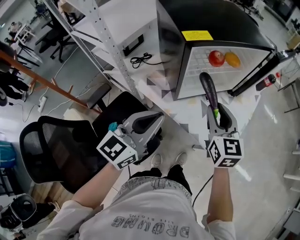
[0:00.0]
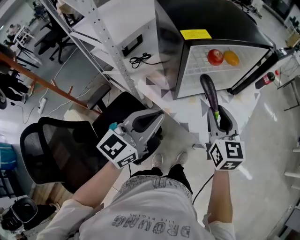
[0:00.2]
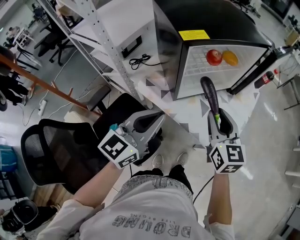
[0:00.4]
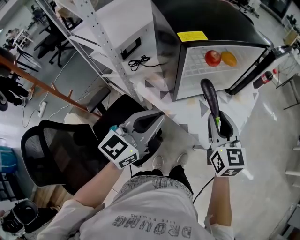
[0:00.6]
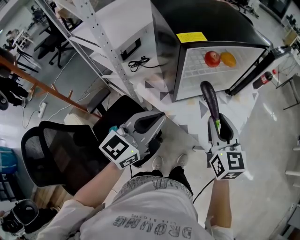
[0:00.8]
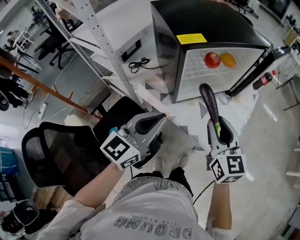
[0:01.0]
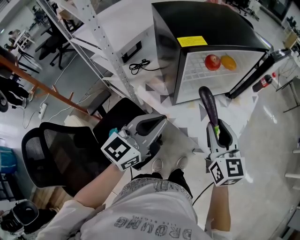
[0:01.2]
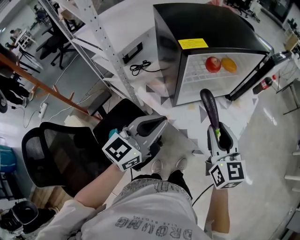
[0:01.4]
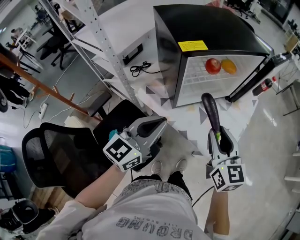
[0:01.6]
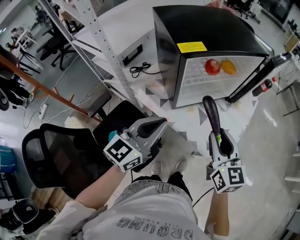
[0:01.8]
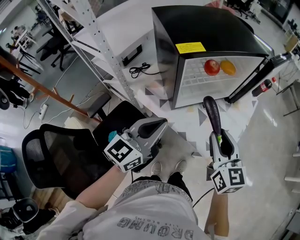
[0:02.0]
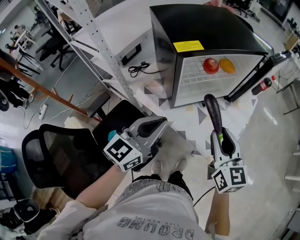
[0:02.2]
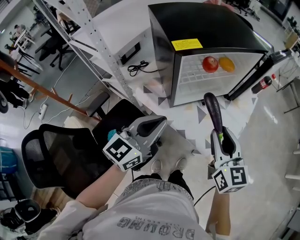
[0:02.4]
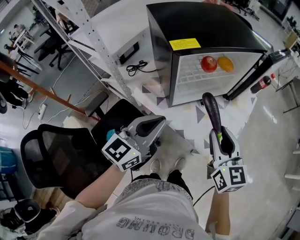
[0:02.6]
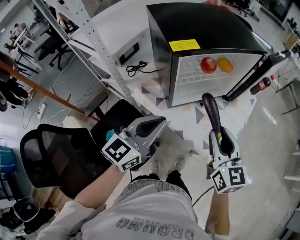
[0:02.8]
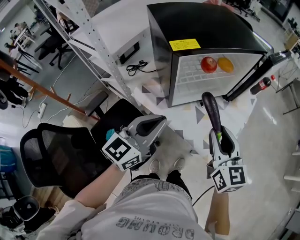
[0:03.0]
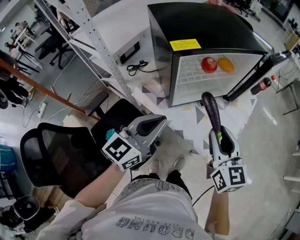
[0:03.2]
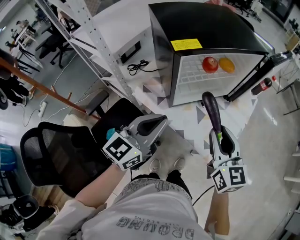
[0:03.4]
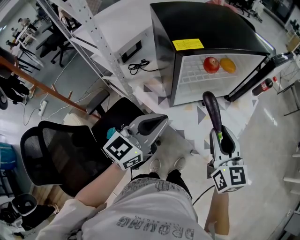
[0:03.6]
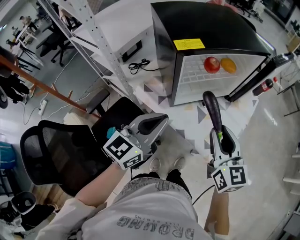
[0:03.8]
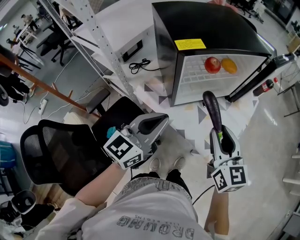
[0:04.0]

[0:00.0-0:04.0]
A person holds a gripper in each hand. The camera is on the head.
0:00.0 to 0:01.4: The right gripper goes roughly 5 cm backward.
0:01.4 to 0:02.6: The grippers stay close to where they were, moving slightly.
0:02.6 to 0:04.0: Neither gripper changes place.

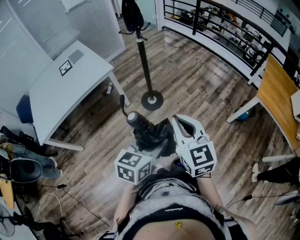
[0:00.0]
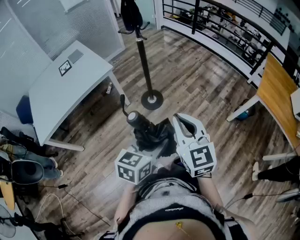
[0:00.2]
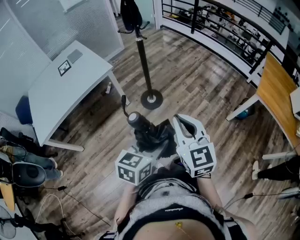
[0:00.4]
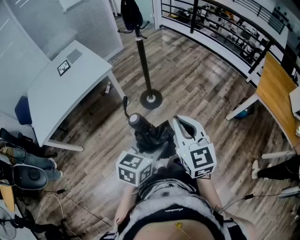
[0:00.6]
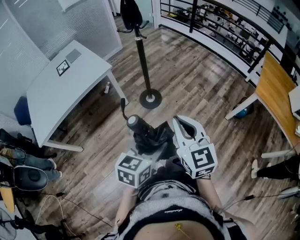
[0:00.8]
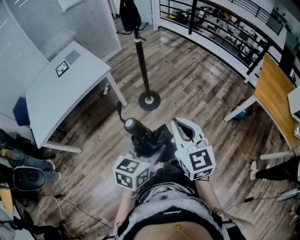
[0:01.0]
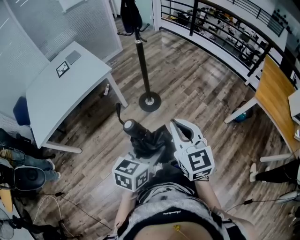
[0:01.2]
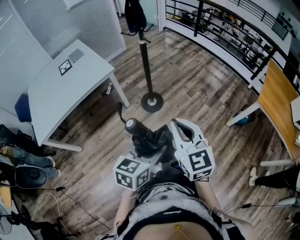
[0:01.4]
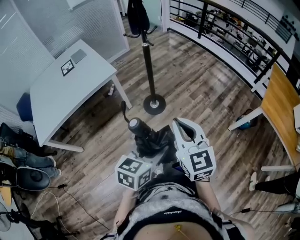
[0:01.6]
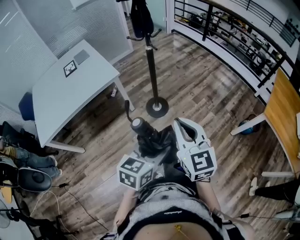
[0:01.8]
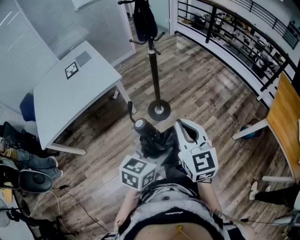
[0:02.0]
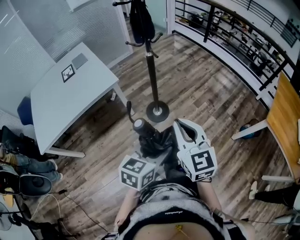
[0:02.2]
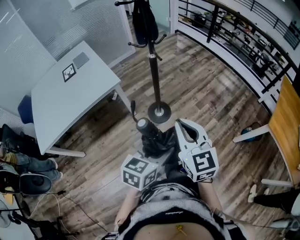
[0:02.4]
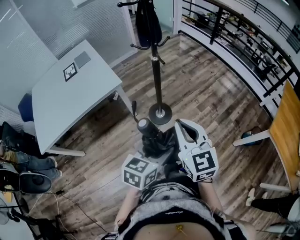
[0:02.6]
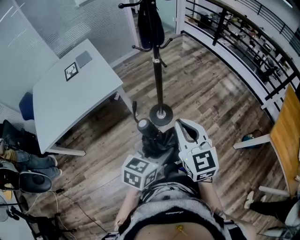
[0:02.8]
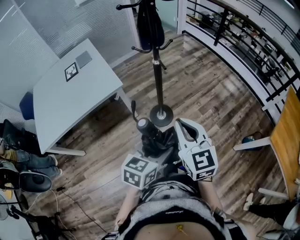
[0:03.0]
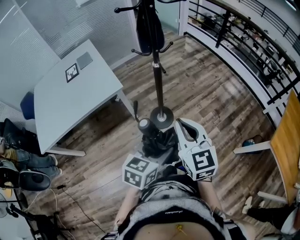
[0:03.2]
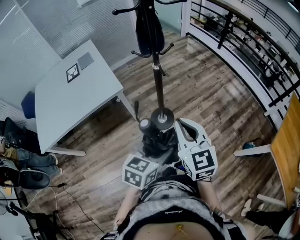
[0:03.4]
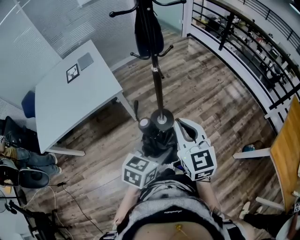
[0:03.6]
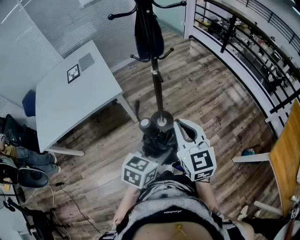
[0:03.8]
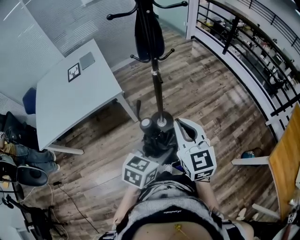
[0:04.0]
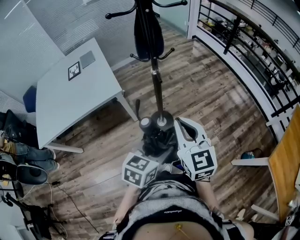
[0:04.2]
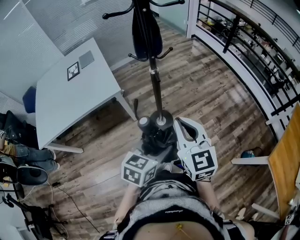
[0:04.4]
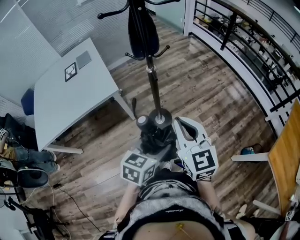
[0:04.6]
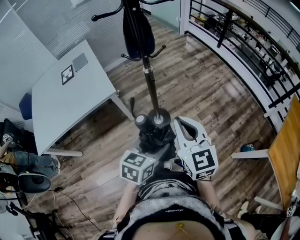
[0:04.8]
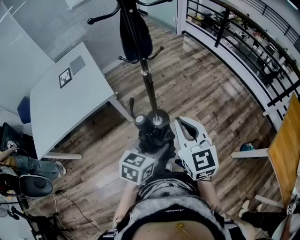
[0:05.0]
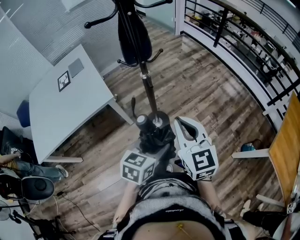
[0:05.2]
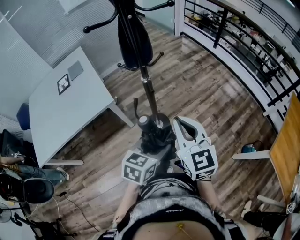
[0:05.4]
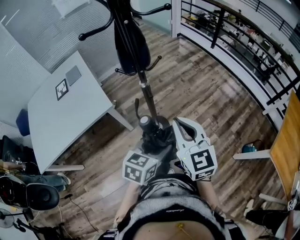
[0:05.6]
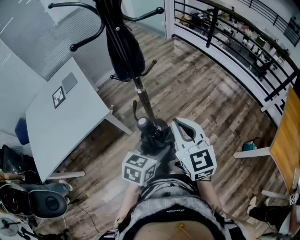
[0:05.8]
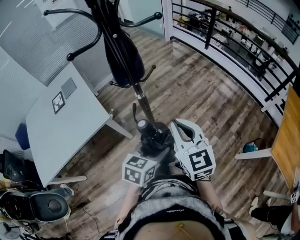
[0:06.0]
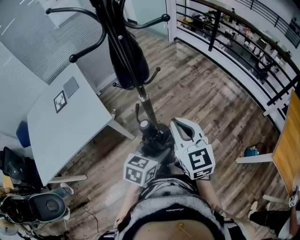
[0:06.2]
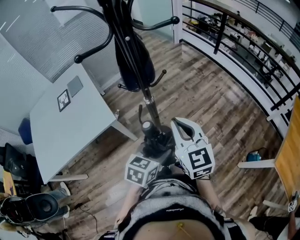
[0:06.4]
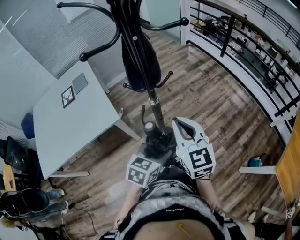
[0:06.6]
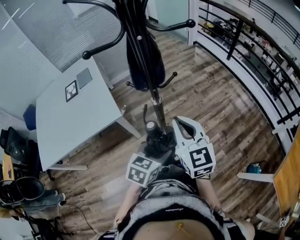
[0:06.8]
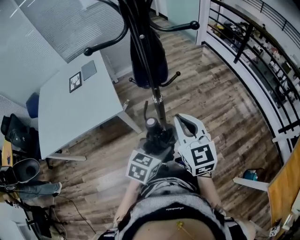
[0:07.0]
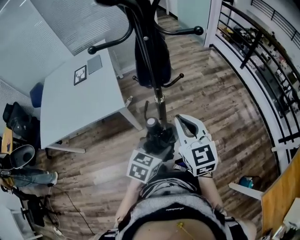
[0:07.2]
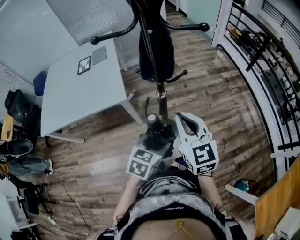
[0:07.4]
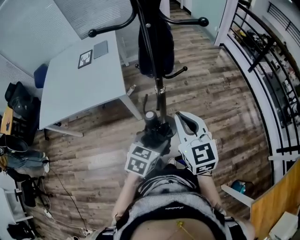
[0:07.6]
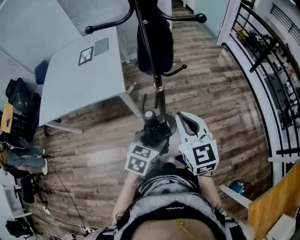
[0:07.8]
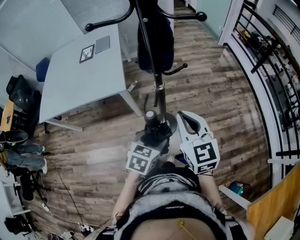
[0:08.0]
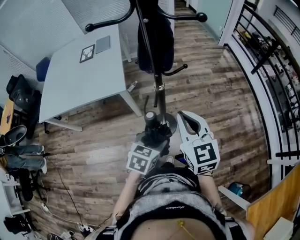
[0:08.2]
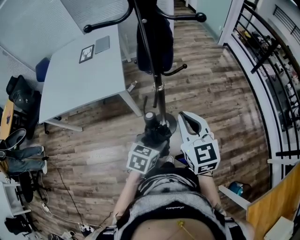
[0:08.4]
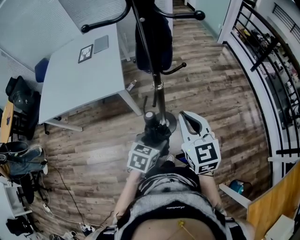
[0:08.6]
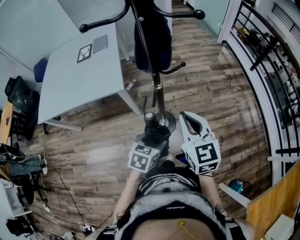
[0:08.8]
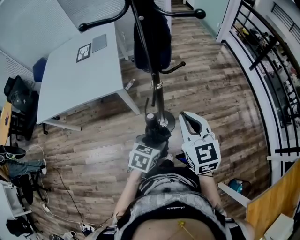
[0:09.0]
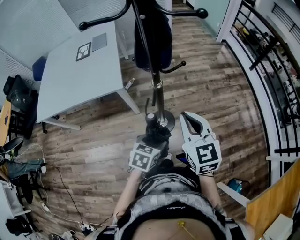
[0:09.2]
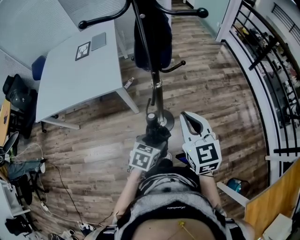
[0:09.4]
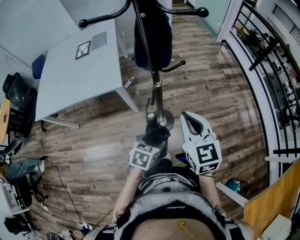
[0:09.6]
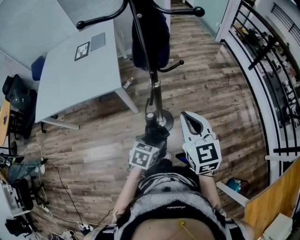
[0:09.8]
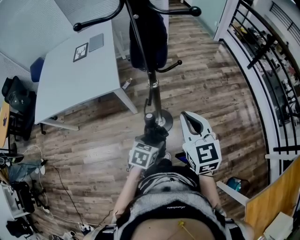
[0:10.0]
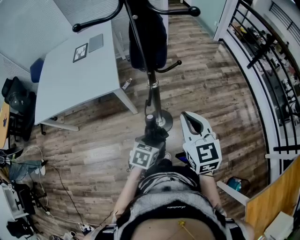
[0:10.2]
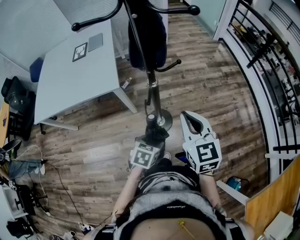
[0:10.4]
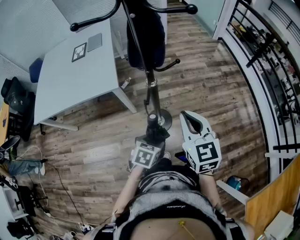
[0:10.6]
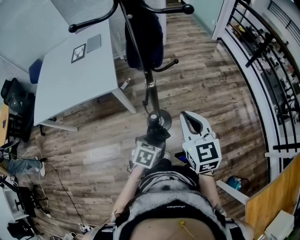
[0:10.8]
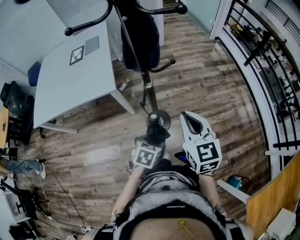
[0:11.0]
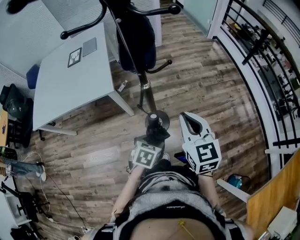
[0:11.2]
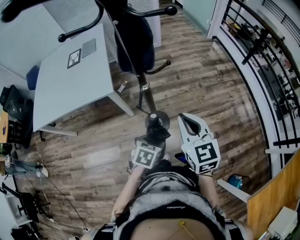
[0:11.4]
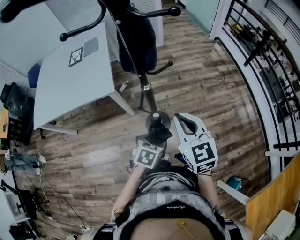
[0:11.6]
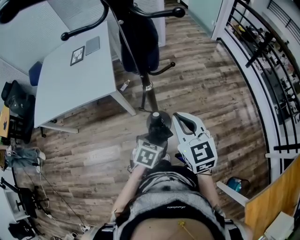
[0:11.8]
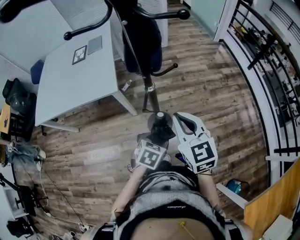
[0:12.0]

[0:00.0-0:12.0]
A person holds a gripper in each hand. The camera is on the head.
0:00.0 to 0:01.6: The right gripper moves about 5 cm.
0:01.6 to 0:03.0: The grippers both shift forward by some 20 cm.
0:03.0 to 0:04.4: The grippers both shift forward by approximately 10 cm.
0:04.4 to 0:06.0: Both grippers travel together forward, about 10 cm.
0:06.0 to 0:07.6: The left gripper changes place by approximately 5 cm, and swivels roughly 30 degrees. The right gripper moves some 5 cm, and swivels approximately 20 degrees.
0:07.6 to 0:09.0: The left gripper travels downward by about 5 cm.
0:09.0 to 0:10.4: The grippers stay close to where they were, moving slightly.
0:10.4 to 0:12.0: The left gripper shifts by roughly 5 cm.

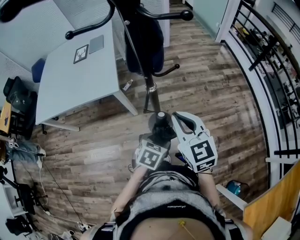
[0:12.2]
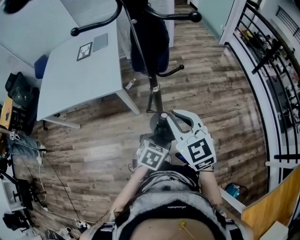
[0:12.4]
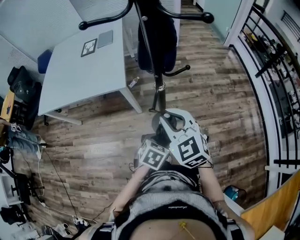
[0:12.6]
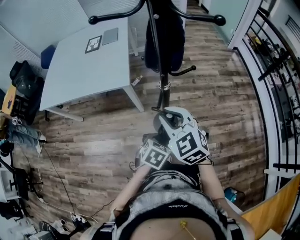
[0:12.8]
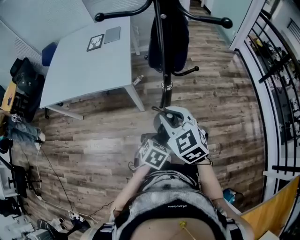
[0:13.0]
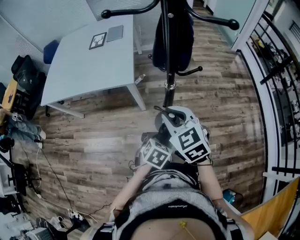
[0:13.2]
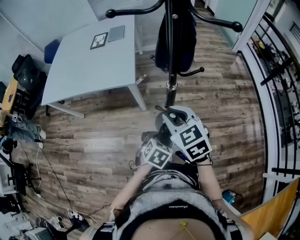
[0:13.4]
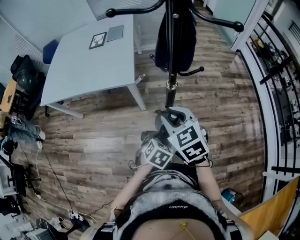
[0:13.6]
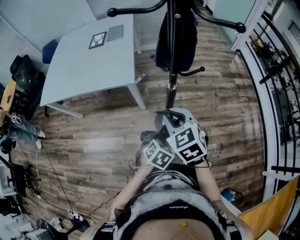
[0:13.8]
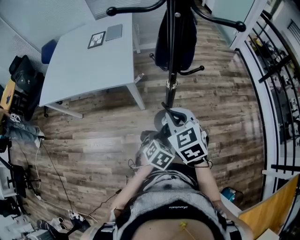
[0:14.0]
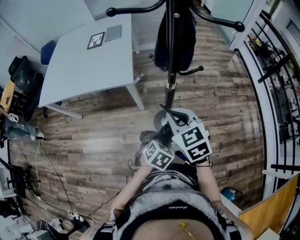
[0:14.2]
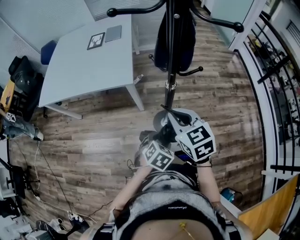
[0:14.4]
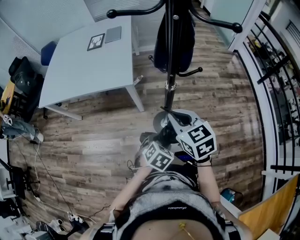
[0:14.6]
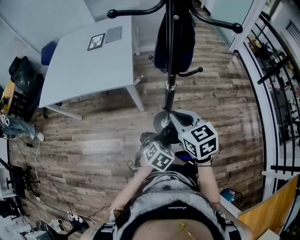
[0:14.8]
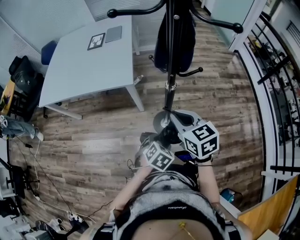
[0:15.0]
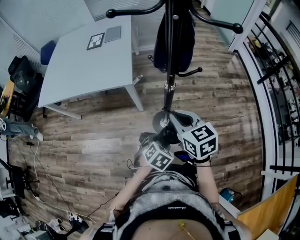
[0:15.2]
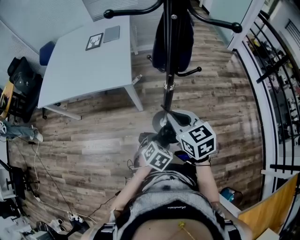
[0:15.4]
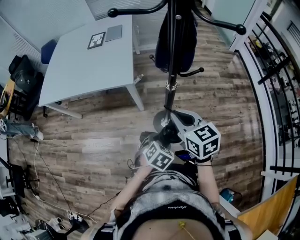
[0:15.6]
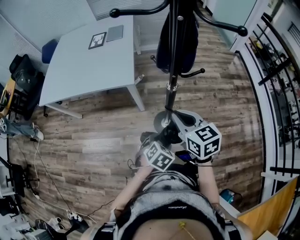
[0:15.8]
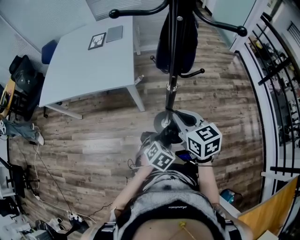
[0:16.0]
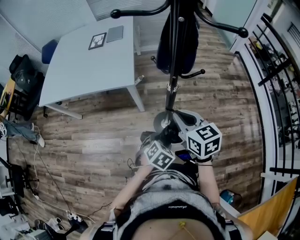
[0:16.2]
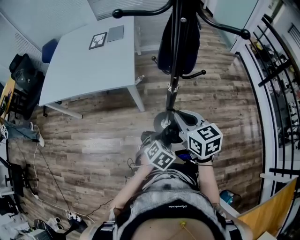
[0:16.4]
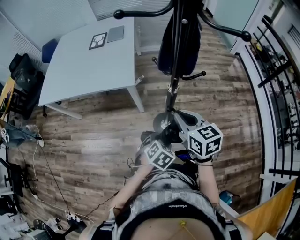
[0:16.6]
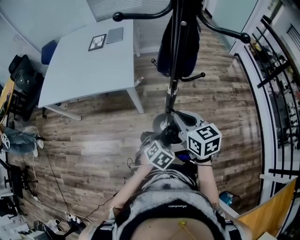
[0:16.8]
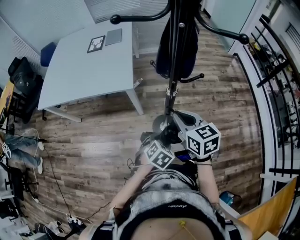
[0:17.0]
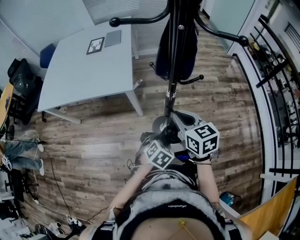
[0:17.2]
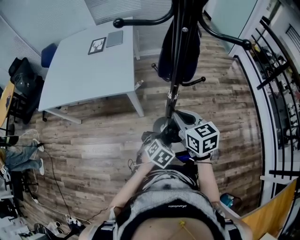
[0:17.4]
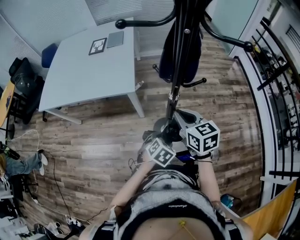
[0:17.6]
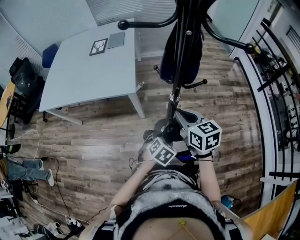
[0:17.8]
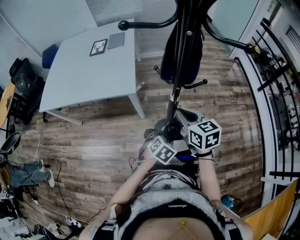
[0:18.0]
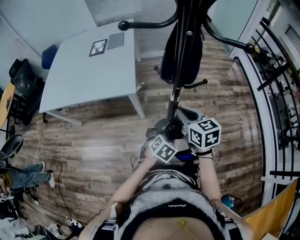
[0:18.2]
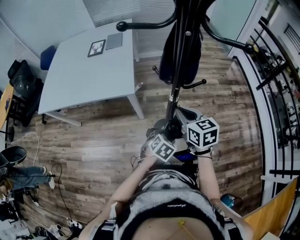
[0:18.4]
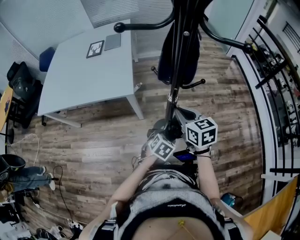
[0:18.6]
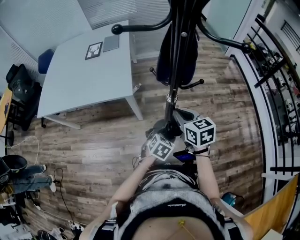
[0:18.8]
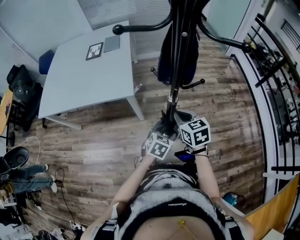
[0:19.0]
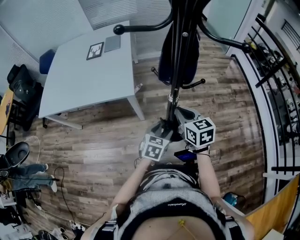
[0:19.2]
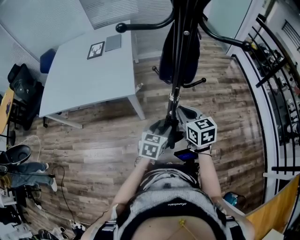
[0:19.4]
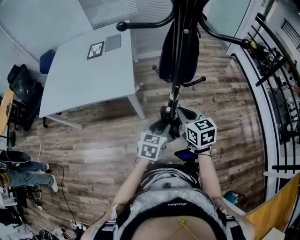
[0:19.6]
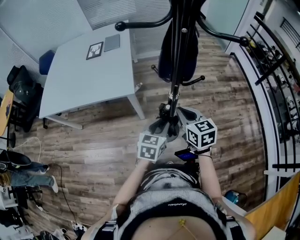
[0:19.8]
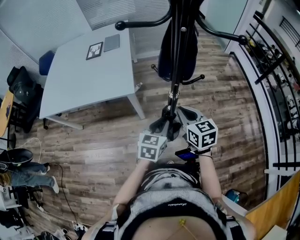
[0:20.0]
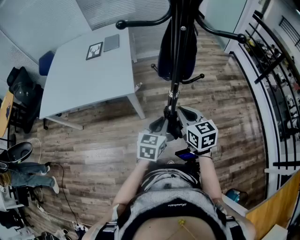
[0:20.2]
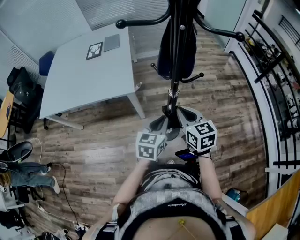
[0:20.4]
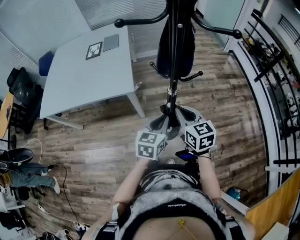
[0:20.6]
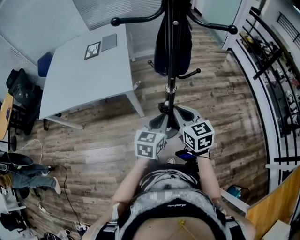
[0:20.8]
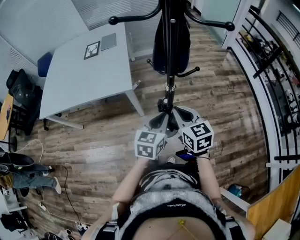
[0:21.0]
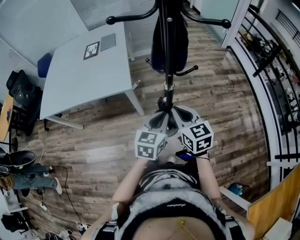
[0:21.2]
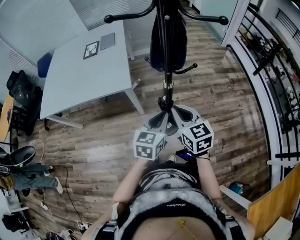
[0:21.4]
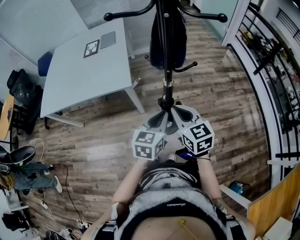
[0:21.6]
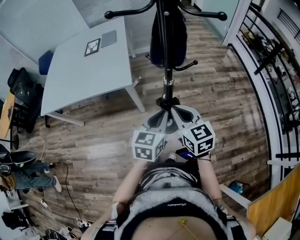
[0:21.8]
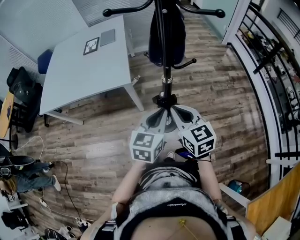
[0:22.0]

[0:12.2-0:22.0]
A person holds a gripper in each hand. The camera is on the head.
0:12.2 to 0:13.6: The right gripper is displaced to the left by approximately 10 cm, swivels roughly 20 degrees, and opens up. The left gripper moves approximately 5 cm.
0:13.6 to 0:15.0: The right gripper closes up.
0:15.0 to 0:16.4: The grippers move only a little.
0:16.4 to 0:17.8: The left gripper travels forward by approximately 5 cm.
0:17.8 to 0:19.2: The left gripper travels forward by about 5 cm, and rotates roughly 20 degrees.
0:19.2 to 0:20.6: The left gripper goes about 10 cm upward, and closes up.
0:20.6 to 0:22.0: The right gripper shifts roughly 5 cm backward. The left gripper moves upward, approximately 5 cm.
